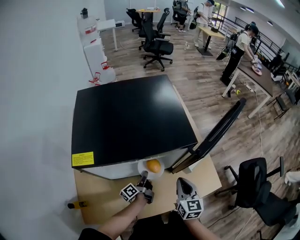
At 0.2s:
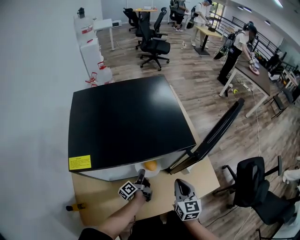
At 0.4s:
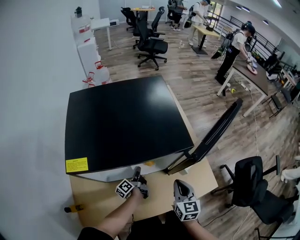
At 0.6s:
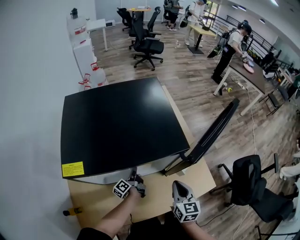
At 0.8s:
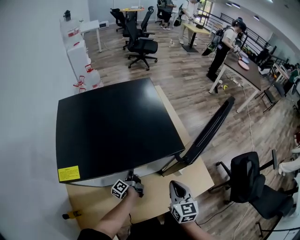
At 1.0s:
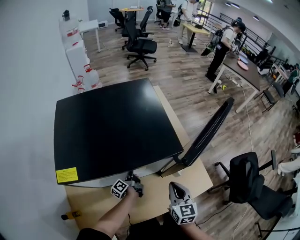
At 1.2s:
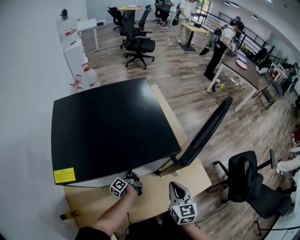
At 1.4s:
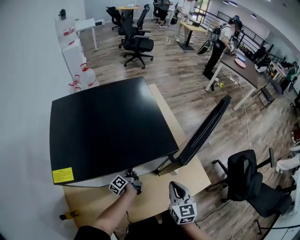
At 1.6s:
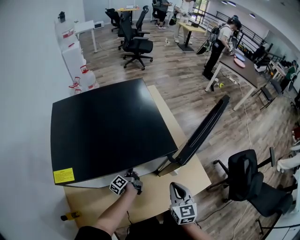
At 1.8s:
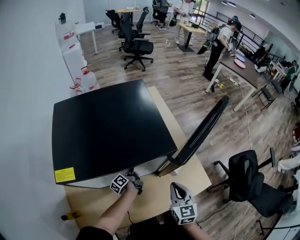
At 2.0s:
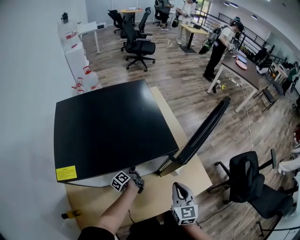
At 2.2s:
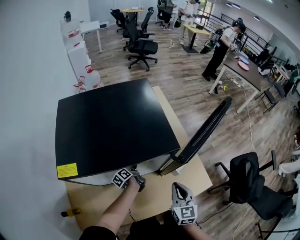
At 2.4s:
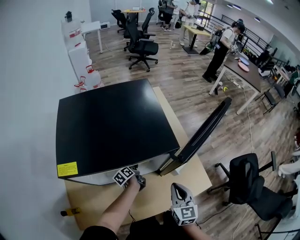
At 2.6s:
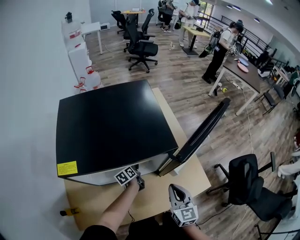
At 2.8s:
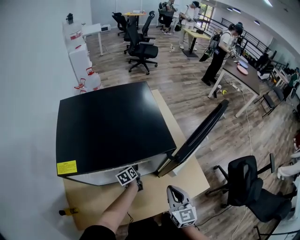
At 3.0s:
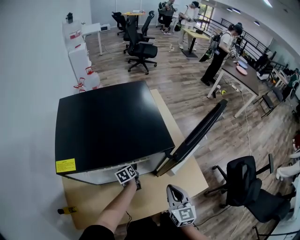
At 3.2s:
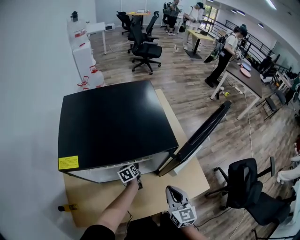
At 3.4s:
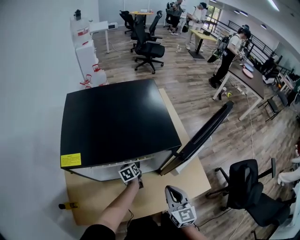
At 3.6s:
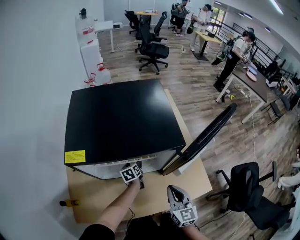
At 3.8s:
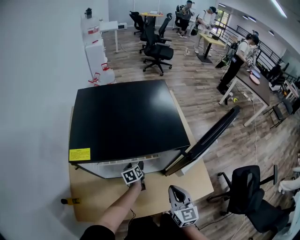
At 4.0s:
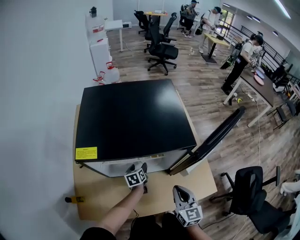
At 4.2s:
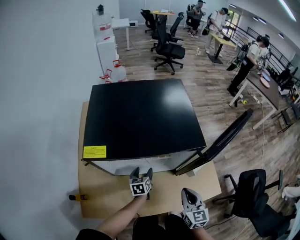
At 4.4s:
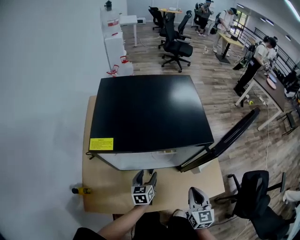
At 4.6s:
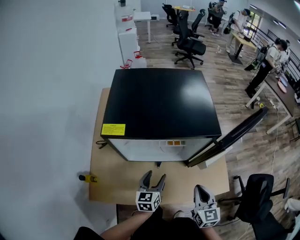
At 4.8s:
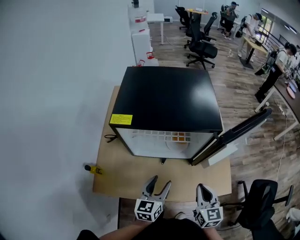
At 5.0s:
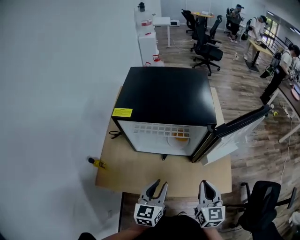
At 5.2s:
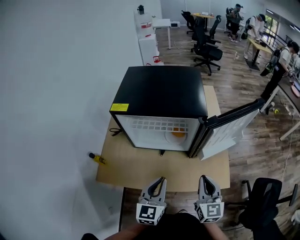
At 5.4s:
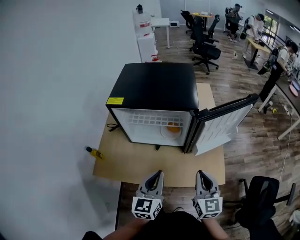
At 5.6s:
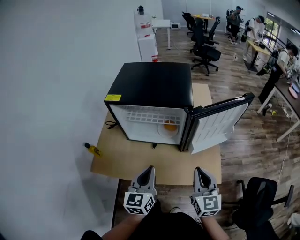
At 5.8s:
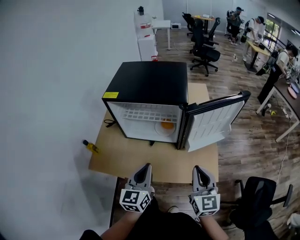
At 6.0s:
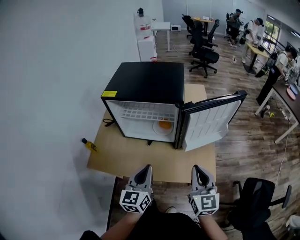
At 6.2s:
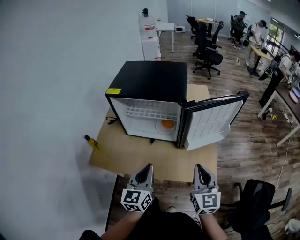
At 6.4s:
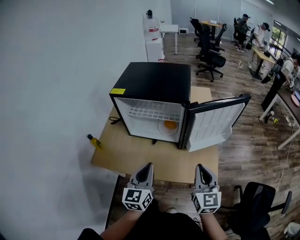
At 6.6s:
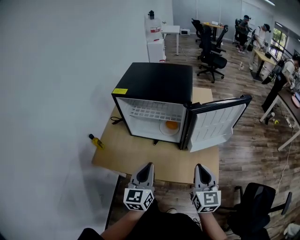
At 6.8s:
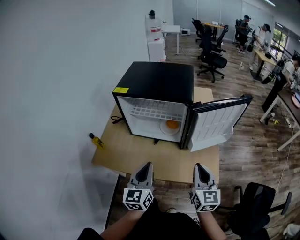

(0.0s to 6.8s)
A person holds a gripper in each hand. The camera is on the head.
0.0s - 1.4s: The left gripper moves forward, some 10 cm.
1.4s - 2.8s: The left gripper turns by roughly 40 degrees, and opens its fingers.
2.8s - 4.0s: The left gripper ends up about 5 cm from where it was, and opens its fingers.
4.0s - 5.4s: The left gripper is displaced upward and backward by some 40 cm, changes its angle by some 40 degrees, and closes. Meanwhile the right gripper shifts about 15 cm upward, backward and to the right.
5.4s - 6.8s: The grippers move only a little.

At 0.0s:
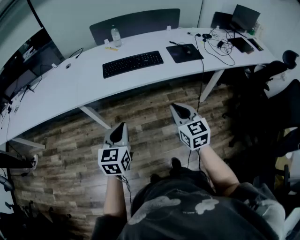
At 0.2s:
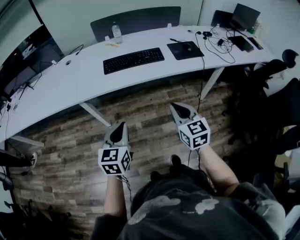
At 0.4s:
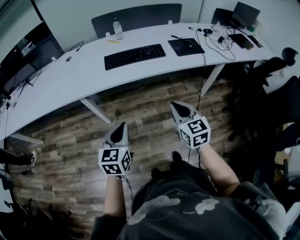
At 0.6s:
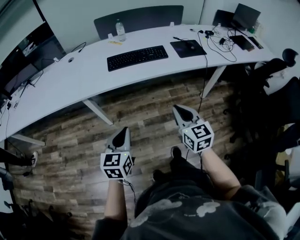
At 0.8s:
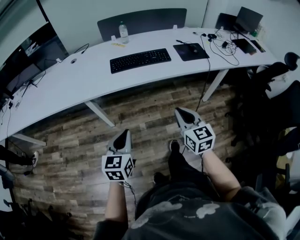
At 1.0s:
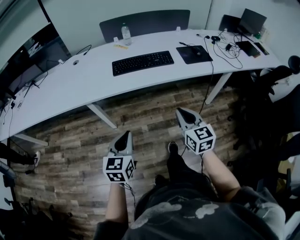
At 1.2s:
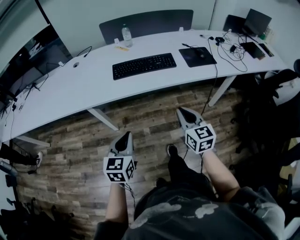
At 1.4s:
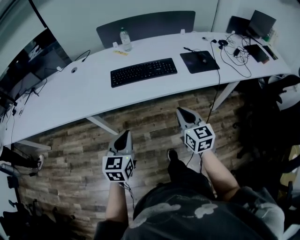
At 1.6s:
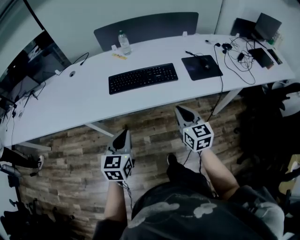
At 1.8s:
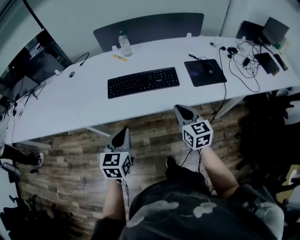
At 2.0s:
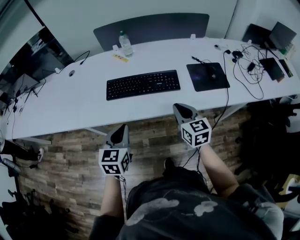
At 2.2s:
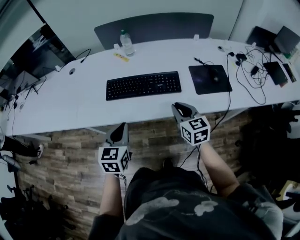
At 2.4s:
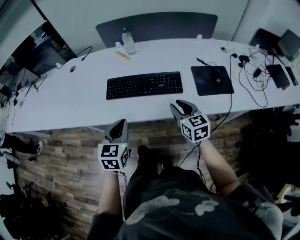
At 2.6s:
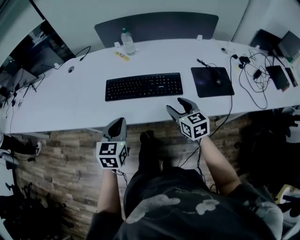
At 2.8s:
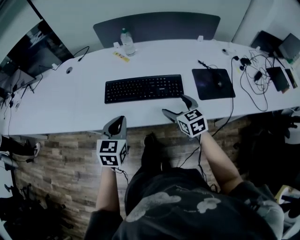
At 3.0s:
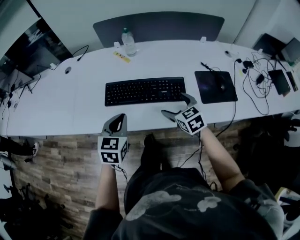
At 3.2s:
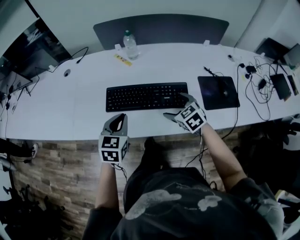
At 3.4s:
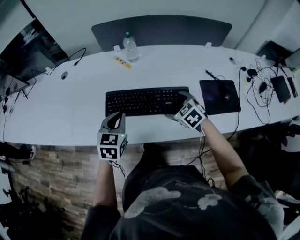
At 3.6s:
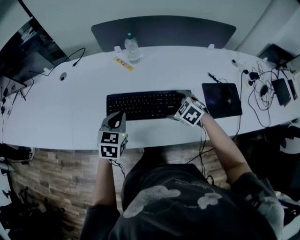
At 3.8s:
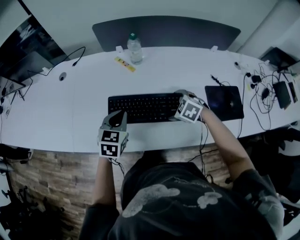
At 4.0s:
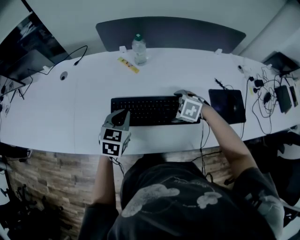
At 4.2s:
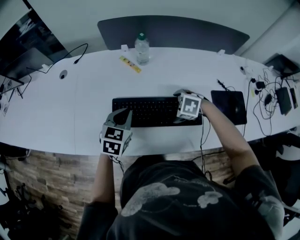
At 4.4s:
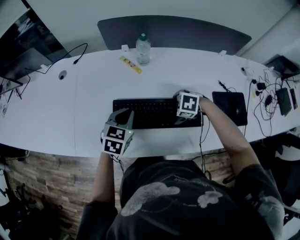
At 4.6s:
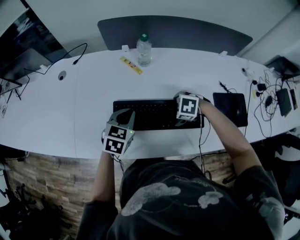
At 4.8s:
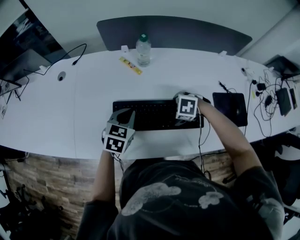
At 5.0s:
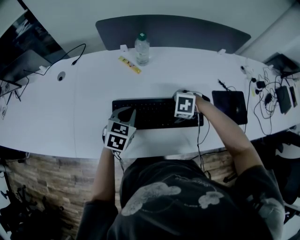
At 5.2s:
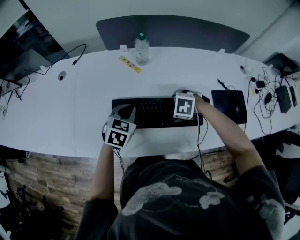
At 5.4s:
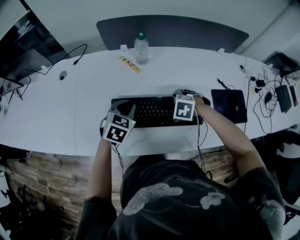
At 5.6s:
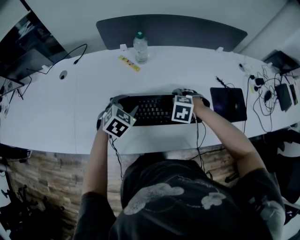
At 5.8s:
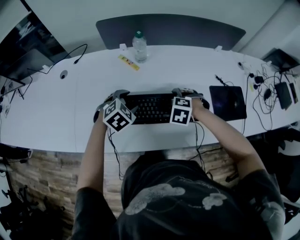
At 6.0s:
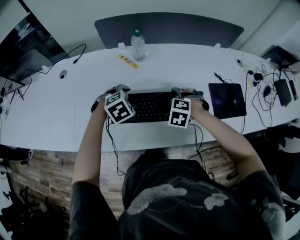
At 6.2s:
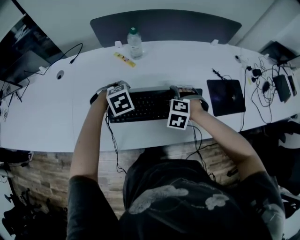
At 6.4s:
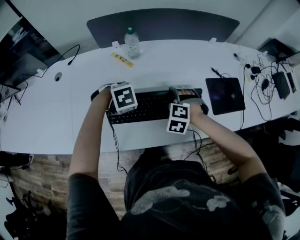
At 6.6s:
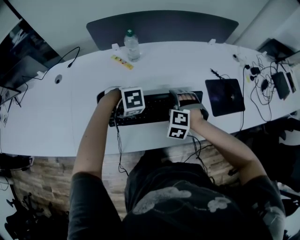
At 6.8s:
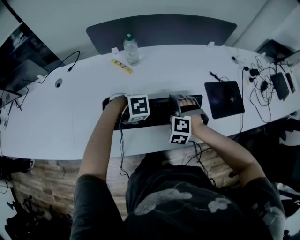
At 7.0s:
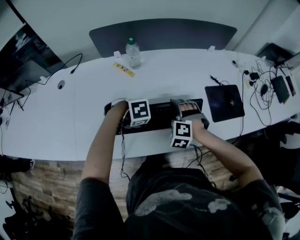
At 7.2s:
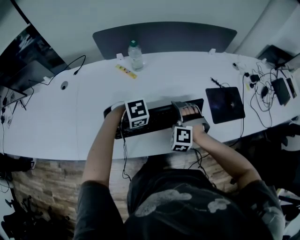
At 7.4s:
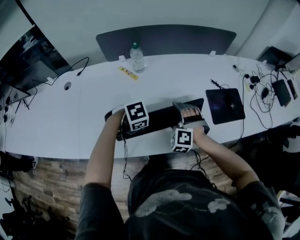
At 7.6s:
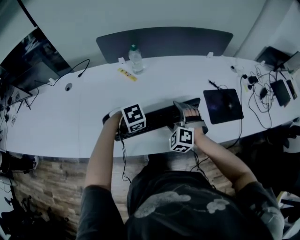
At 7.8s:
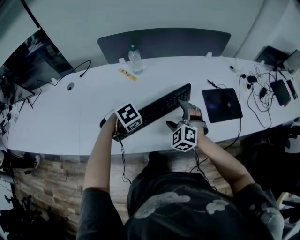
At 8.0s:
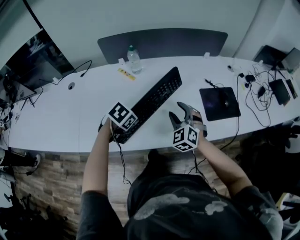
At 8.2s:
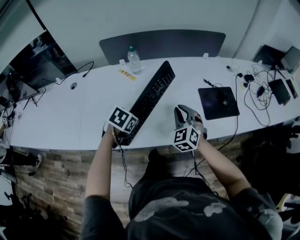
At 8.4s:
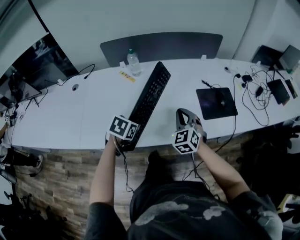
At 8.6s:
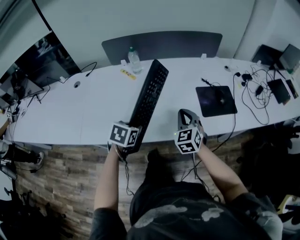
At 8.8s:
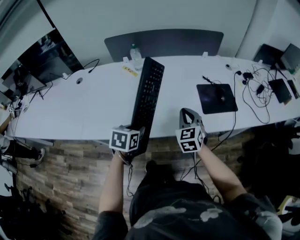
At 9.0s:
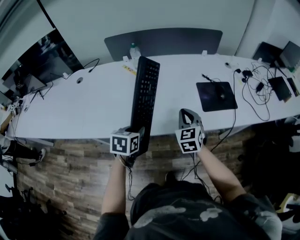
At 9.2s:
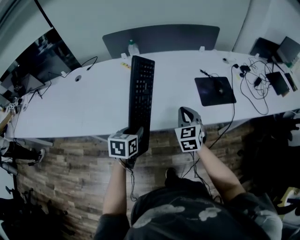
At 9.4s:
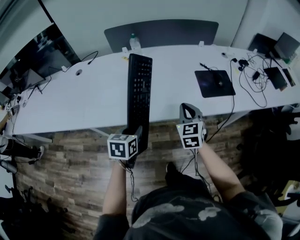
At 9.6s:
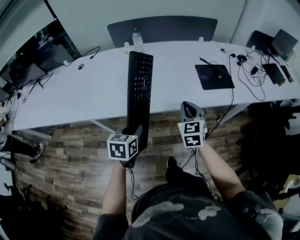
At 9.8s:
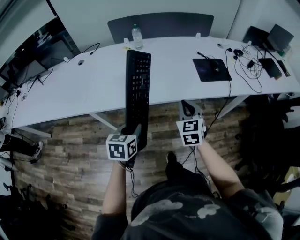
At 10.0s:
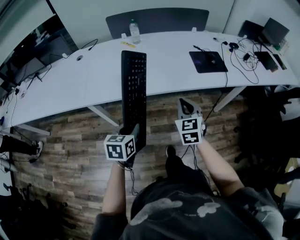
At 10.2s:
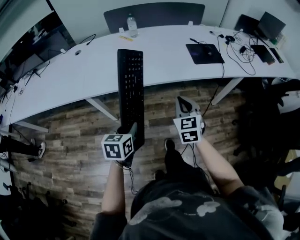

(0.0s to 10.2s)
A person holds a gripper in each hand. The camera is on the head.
0.0s - 1.4s: Both grippers travel together forward, roughly 10 cm.
1.4s - 3.0s: Both grippers move forward, approximately 30 cm. The right gripper changes its angle by approximately 30 degrees, and opens up.
3.0s - 4.4s: The right gripper shifts by about 15 cm, and tilts its fingers roughly 40 degrees downward; the left gripper moves roughly 20 cm.
4.4s - 5.8s: The left gripper changes its angle by approximately 40 degrees, and opens up; the right gripper changes its angle by about 20 degrees.
5.8s - 7.2s: The left gripper ends up roughly 10 cm from where it was, and changes its angle by approximately 40 degrees; the right gripper changes its angle by roughly 30 degrees.
7.2s - 8.8s: The right gripper moves some 15 cm, twists roughly 50 degrees clockwise, seen from behind, and closes; the left gripper changes place by approximately 15 cm, and rotates roughly 70 degrees.
8.8s - 10.2s: The grippers both shift backward by some 30 cm.

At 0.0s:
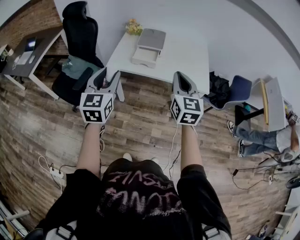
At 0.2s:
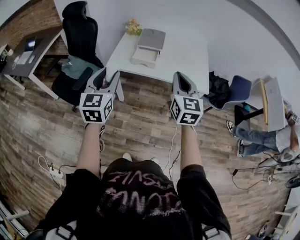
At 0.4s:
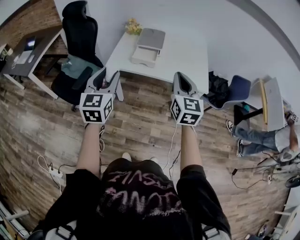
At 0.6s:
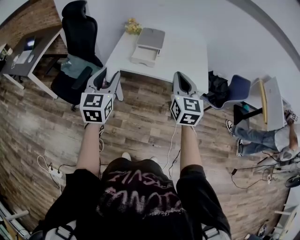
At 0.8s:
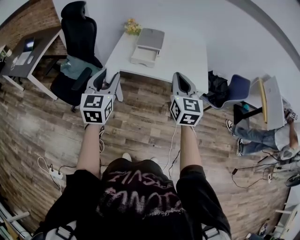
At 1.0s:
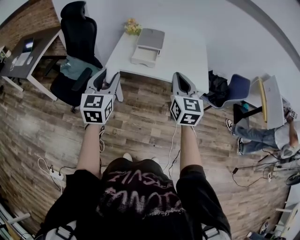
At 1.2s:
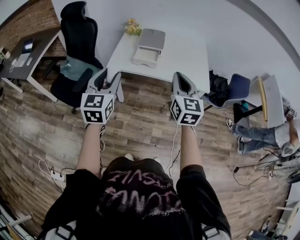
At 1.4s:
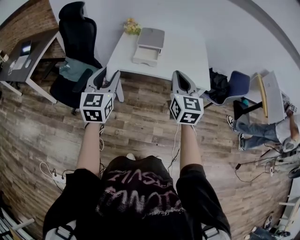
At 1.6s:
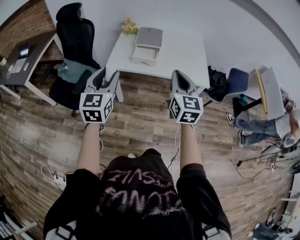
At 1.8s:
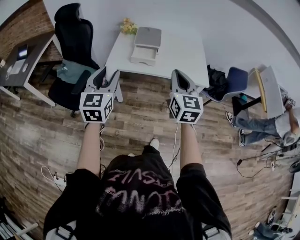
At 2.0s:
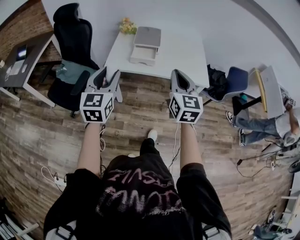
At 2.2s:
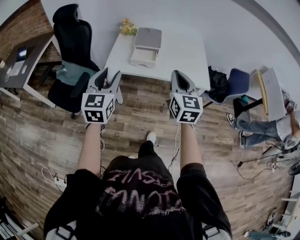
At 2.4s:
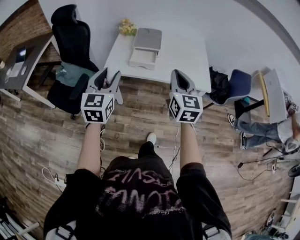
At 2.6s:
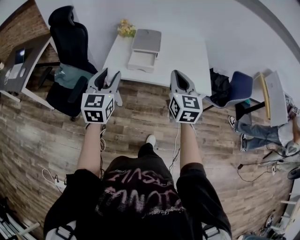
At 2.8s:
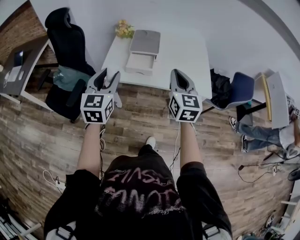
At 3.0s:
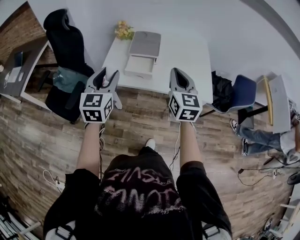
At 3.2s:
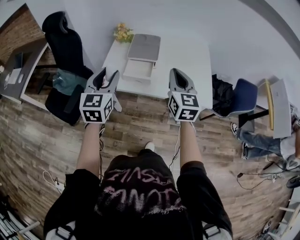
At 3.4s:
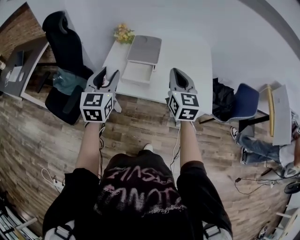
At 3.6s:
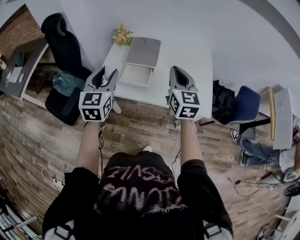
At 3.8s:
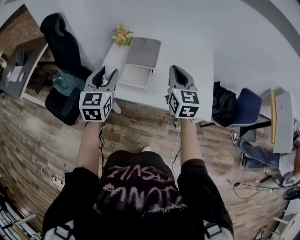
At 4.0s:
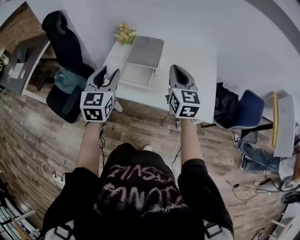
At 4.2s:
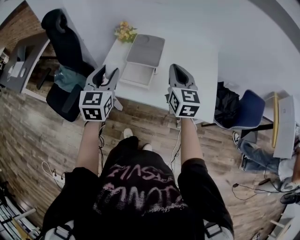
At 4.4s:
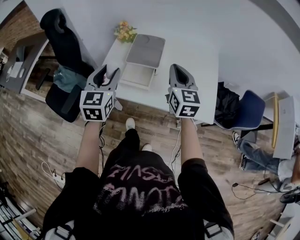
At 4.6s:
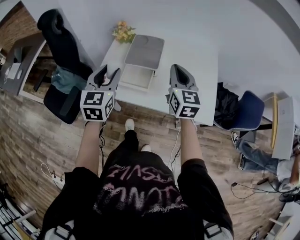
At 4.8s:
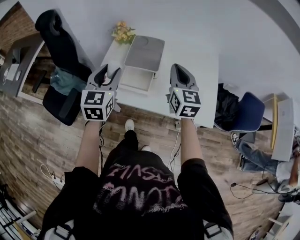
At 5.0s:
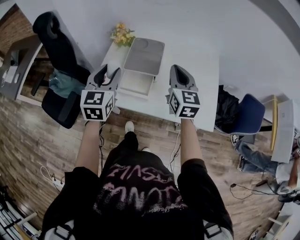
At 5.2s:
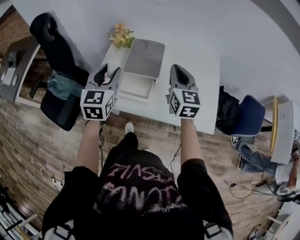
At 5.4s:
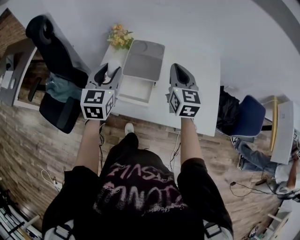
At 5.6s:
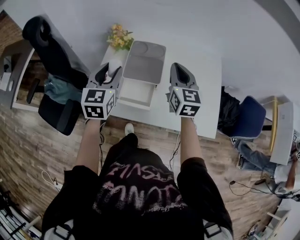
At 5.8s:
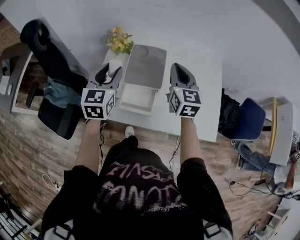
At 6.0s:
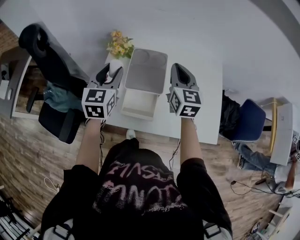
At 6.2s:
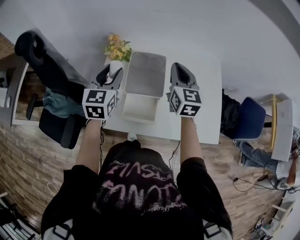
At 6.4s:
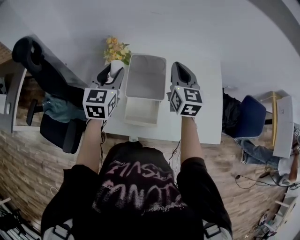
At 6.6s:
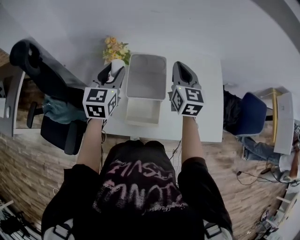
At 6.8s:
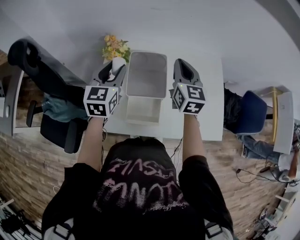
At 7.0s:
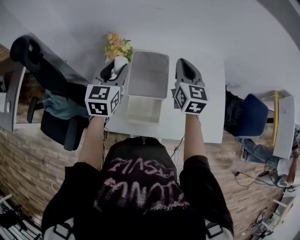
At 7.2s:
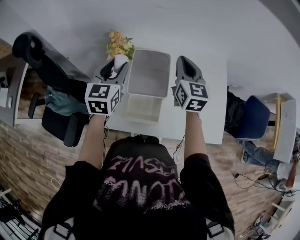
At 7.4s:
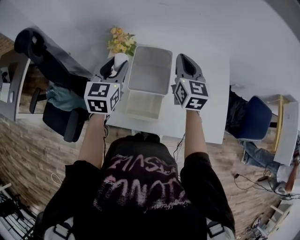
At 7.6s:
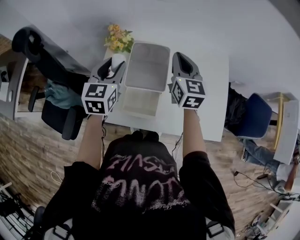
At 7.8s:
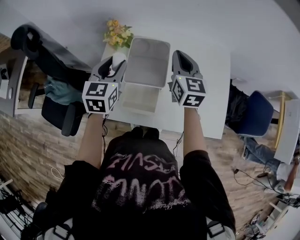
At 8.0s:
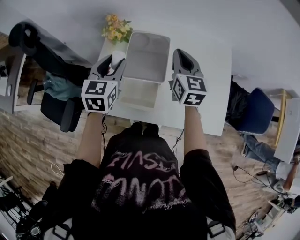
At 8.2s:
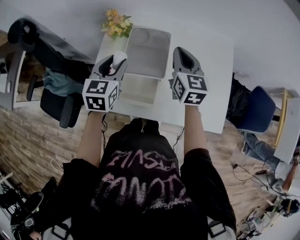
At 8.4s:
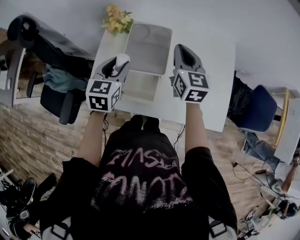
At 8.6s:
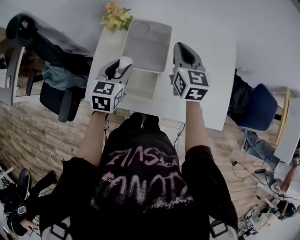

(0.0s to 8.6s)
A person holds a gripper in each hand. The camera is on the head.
0.0s - 1.4s: There are only small adjustments of the grippers.
1.4s - 2.8s: Both grippers move forward, some 10 cm.
2.8s - 4.4s: Both grippers travel together forward, about 15 cm.
4.4s - 5.8s: Both grippers travel together forward, some 15 cm.
5.8s - 7.2s: Both grippers move forward, roughly 10 cm.
7.2s - 8.6s: The right gripper moves downward, roughly 5 cm. The left gripper heads downward and backward, covering about 15 cm.
